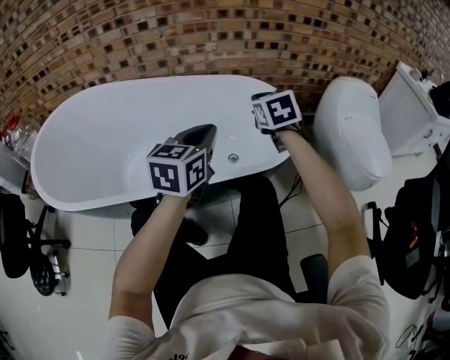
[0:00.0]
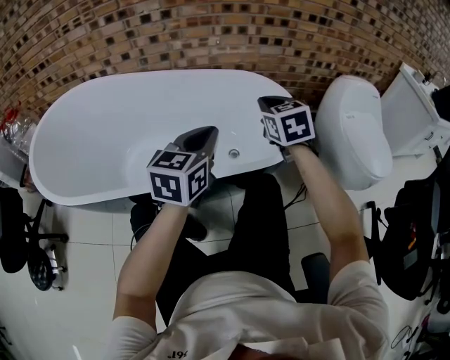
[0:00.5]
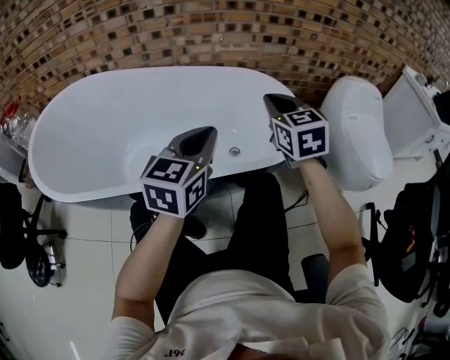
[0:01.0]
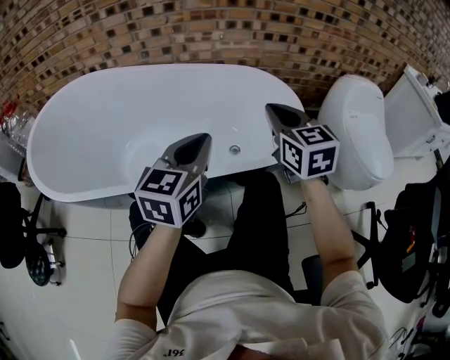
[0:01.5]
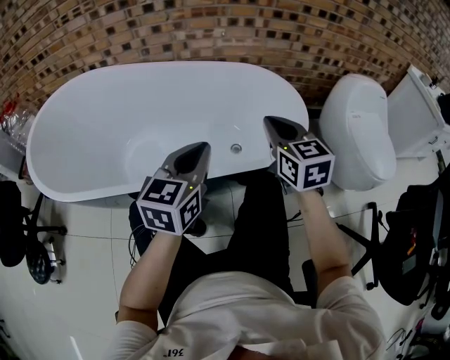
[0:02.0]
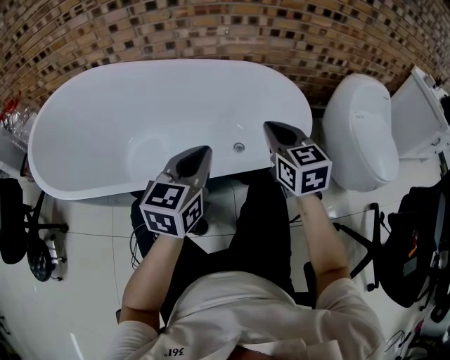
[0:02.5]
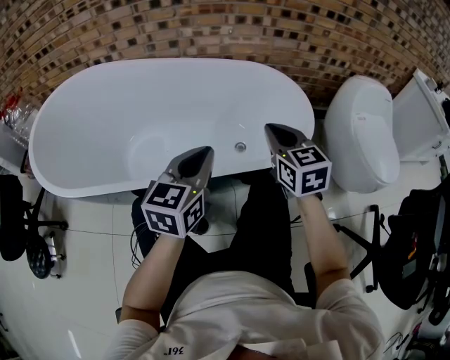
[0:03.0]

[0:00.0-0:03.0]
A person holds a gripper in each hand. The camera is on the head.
0:00.0 to 0:01.5: The right gripper moves backward, about 10 cm, and turns by approximately 20 degrees. Meanwhile the left gripper ends up approximately 5 cm from where it was.
0:01.5 to 0:03.0: The right gripper is displaced downward by some 5 cm.

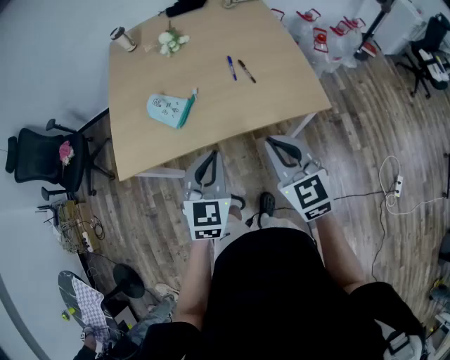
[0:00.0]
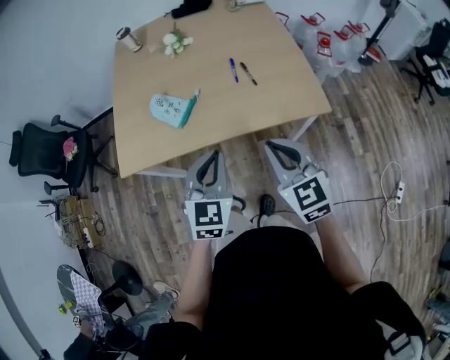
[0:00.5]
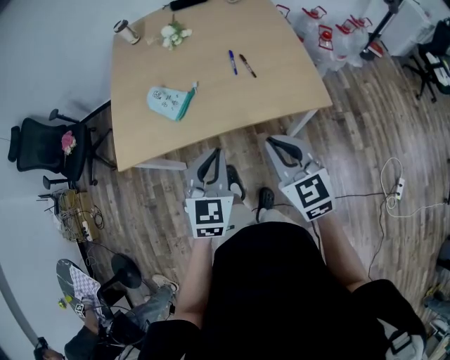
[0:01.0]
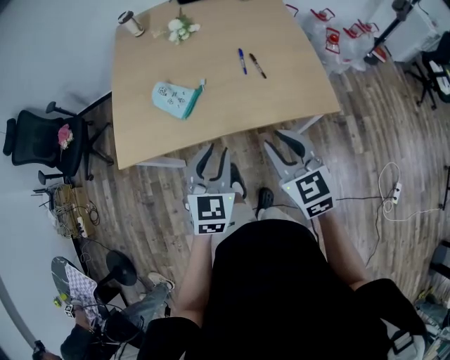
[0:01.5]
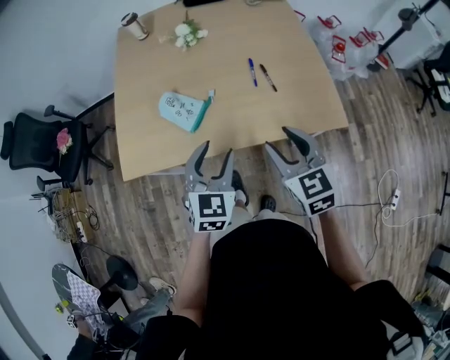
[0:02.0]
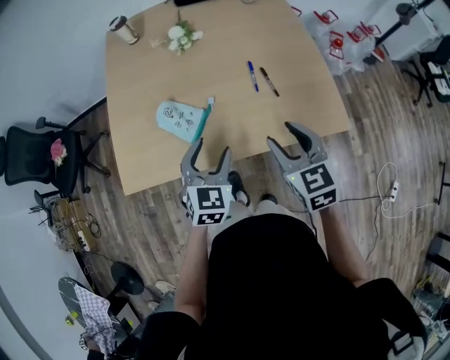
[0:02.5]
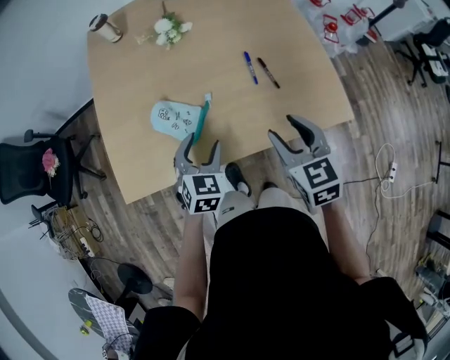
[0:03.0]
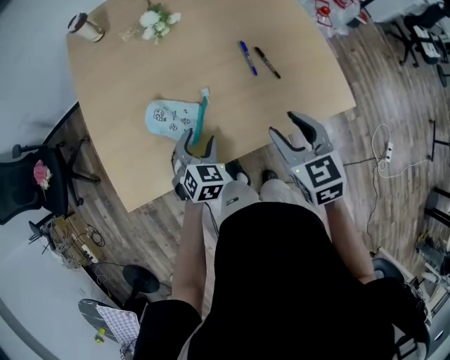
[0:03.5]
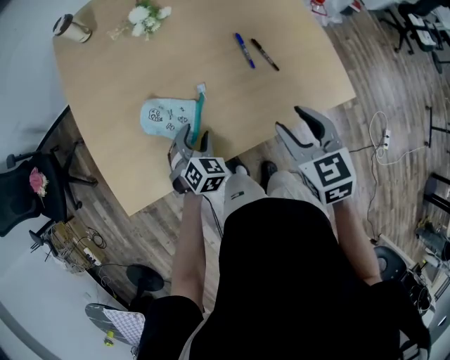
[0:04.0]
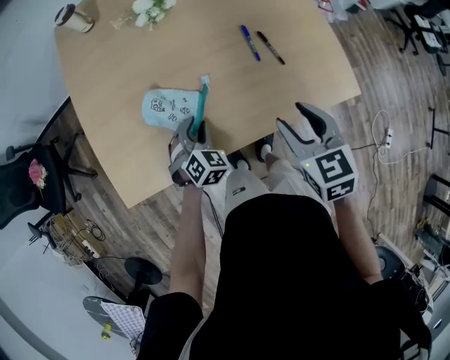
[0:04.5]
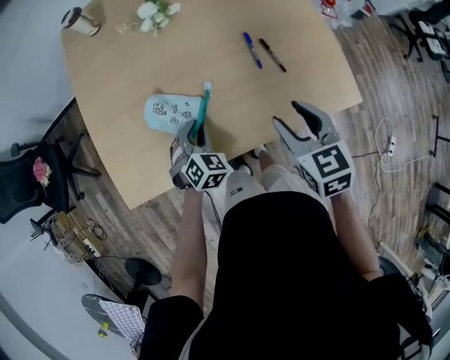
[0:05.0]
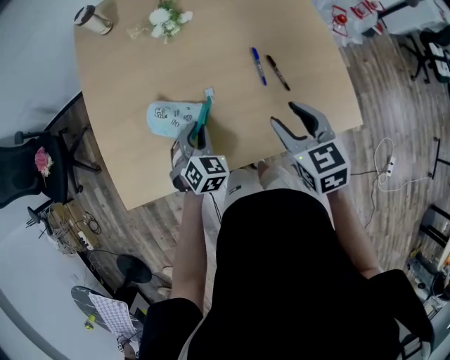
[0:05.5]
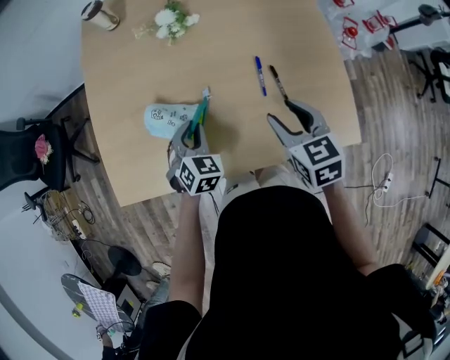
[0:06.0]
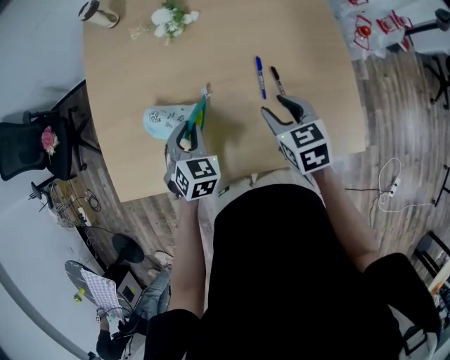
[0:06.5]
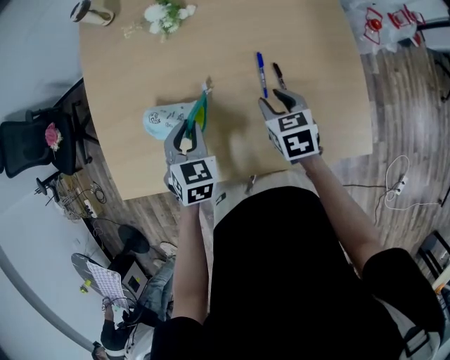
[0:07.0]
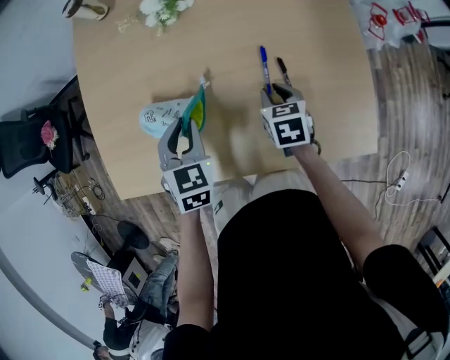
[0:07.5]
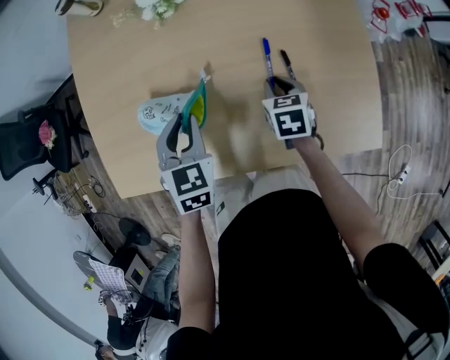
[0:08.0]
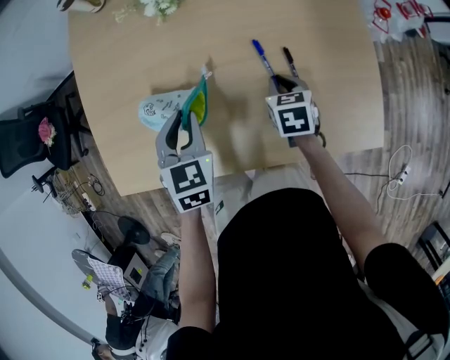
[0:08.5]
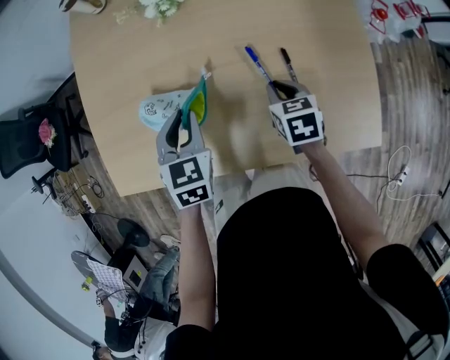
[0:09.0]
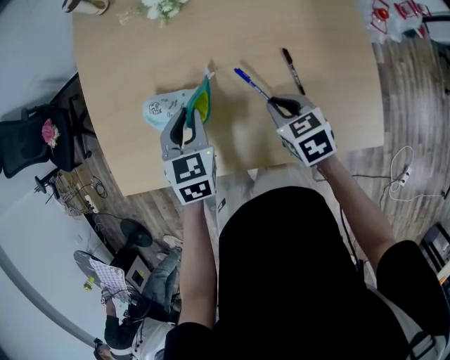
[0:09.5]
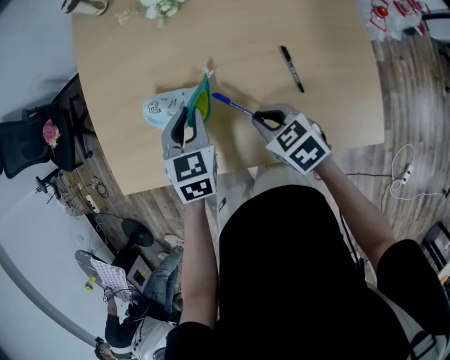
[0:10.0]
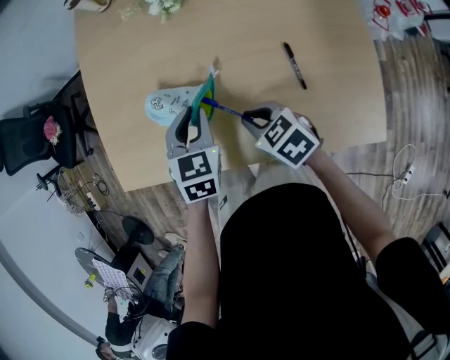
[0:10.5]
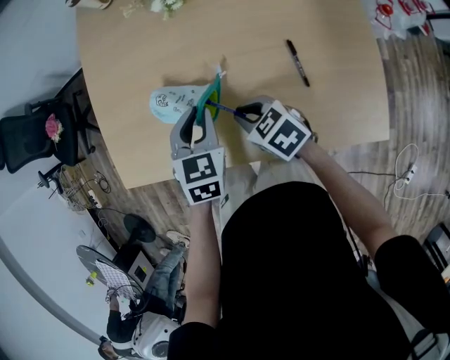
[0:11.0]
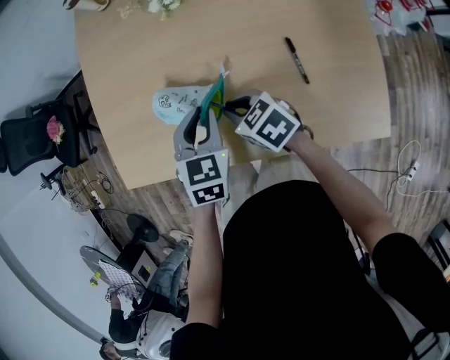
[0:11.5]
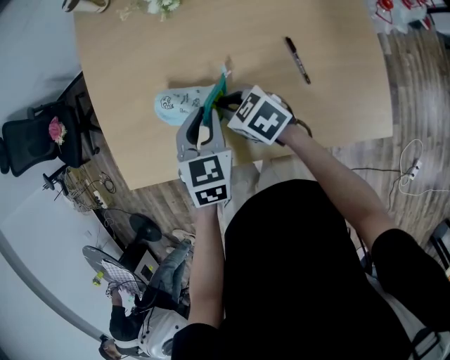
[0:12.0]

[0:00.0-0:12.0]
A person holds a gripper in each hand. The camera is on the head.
0:00.0 to 0:02.0: Both grippers travel together forward, some 10 cm. The right gripper opens. Meanwhile the left gripper opens.
0:02.0 to 0:04.0: The left gripper heads downward, forward and to the left, covering approximately 25 cm, and rotates about 30 degrees; the right gripper goes approximately 10 cm forward, and rotates roughly 20 degrees.
0:04.0 to 0:06.0: The right gripper shifts about 10 cm forward; the left gripper travels forward and upward by some 10 cm, and closes.
0:06.0 to 0:08.0: The right gripper moves downward and forward, some 20 cm, swivels about 20 degrees, and closes. Meanwhile the left gripper moves approximately 5 cm.
0:08.0 to 0:10.0: The right gripper shifts roughly 15 cm to the left, backward and upward, and turns by some 30 degrees.
0:10.0 to 0:12.0: The right gripper is displaced forward and to the left by roughly 10 cm.

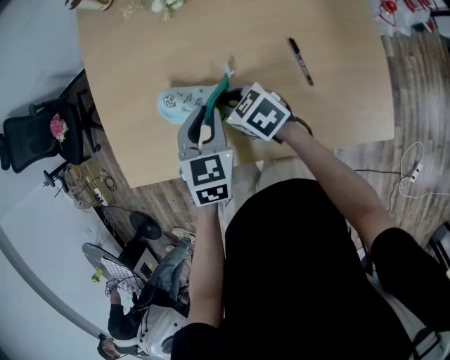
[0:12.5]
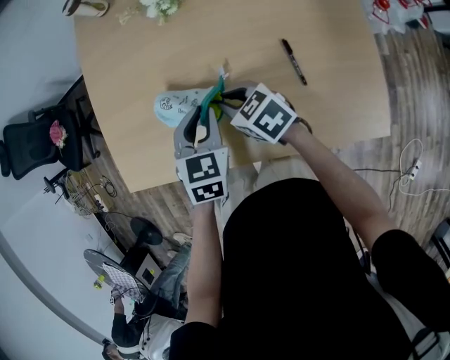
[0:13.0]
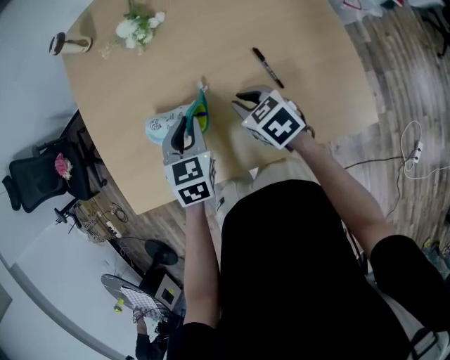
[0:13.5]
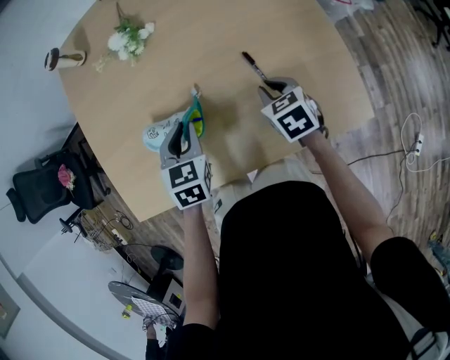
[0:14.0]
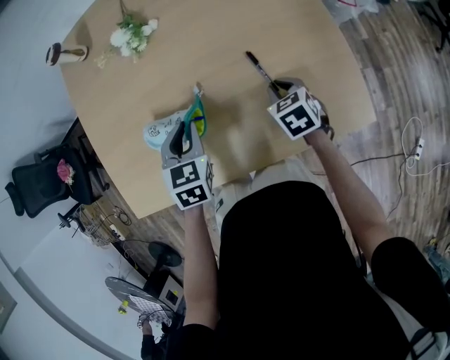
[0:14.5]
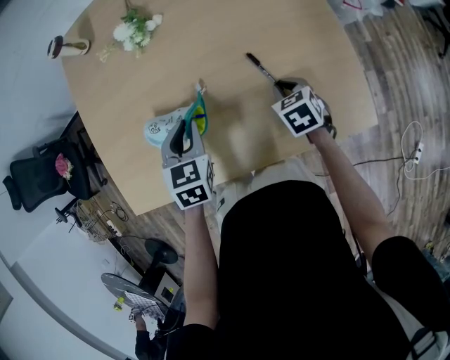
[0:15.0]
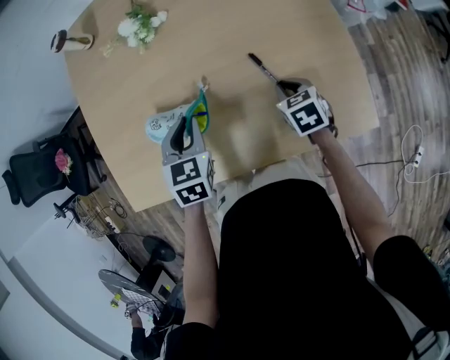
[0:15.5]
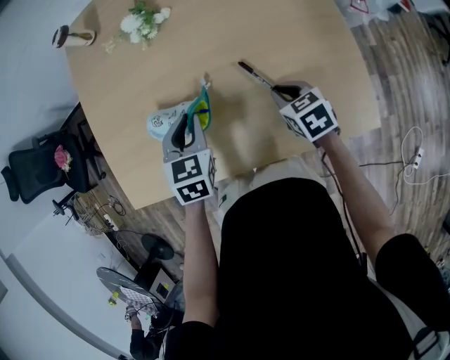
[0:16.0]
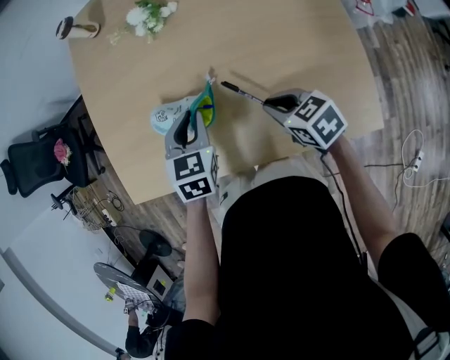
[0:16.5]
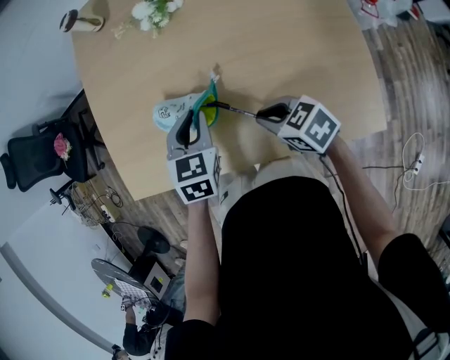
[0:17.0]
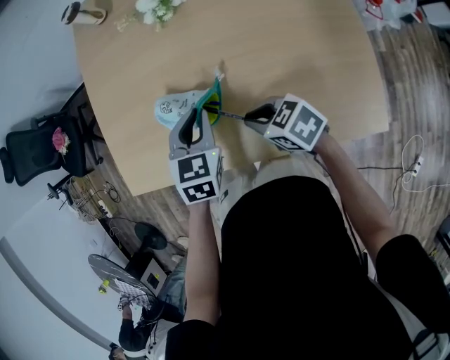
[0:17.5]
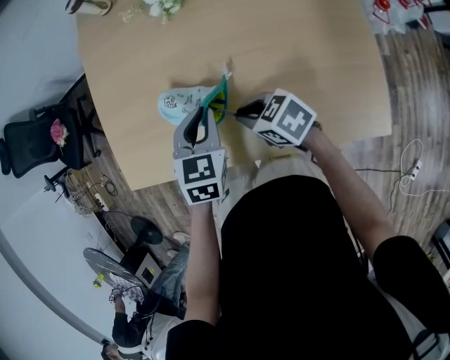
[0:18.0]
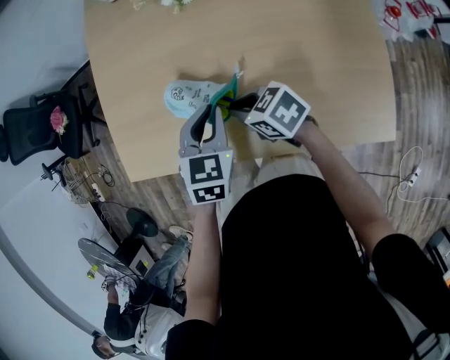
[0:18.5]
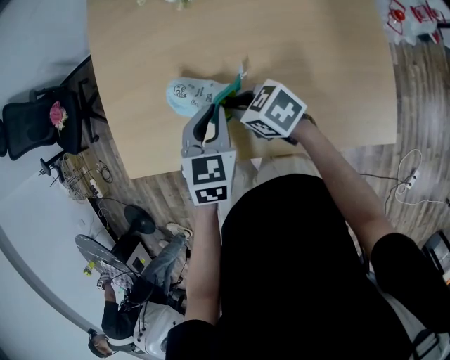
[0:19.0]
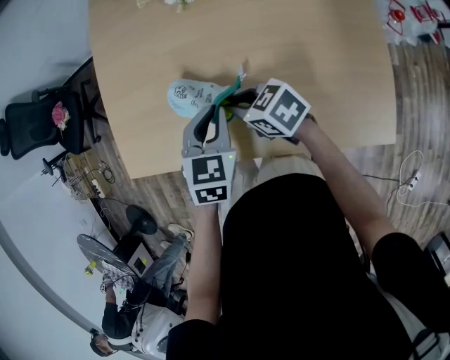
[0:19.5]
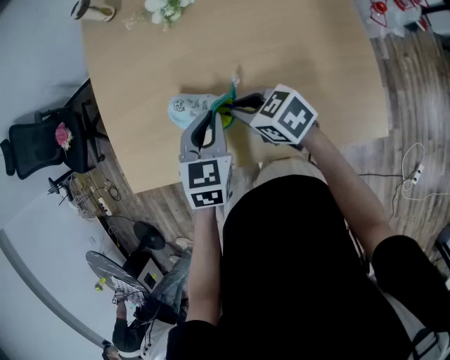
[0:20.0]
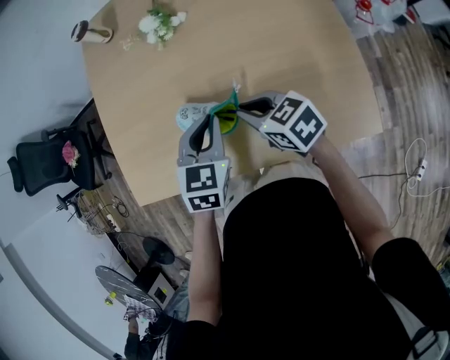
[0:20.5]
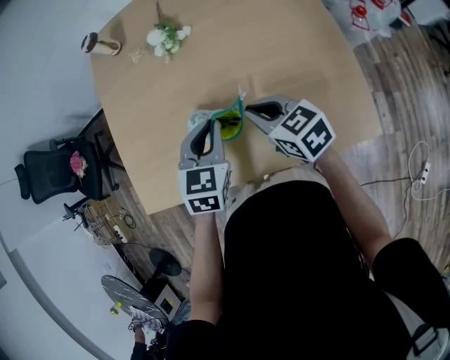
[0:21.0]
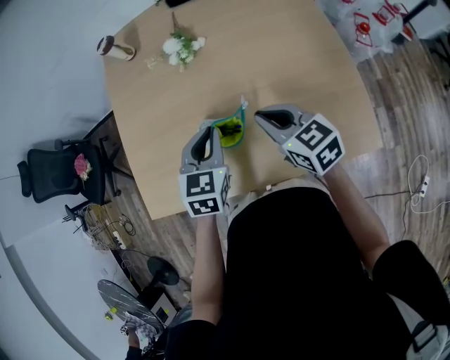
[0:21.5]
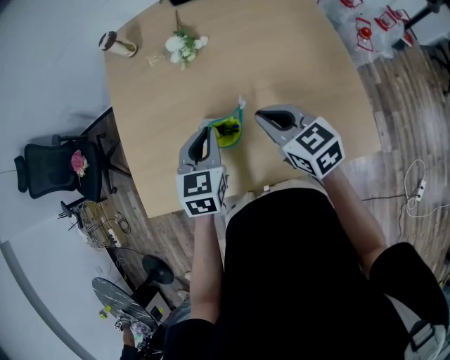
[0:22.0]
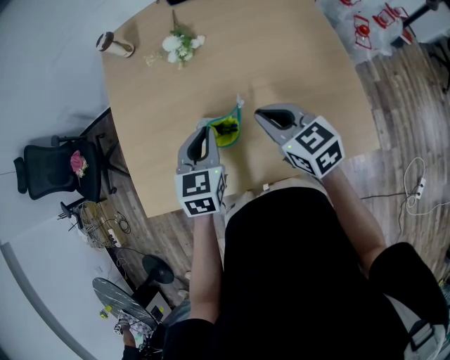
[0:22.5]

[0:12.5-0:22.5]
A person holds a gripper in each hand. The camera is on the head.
0:12.5 to 0:14.5: The right gripper changes place by approximately 25 cm, and turns by about 40 degrees.
0:14.5 to 0:16.5: The right gripper heads to the left and upward, covering roughly 10 cm, and turns by some 30 degrees.
0:16.5 to 0:18.5: The right gripper shifts some 15 cm to the left and forward.
0:18.5 to 0:20.5: The left gripper is displaced to the right by approximately 5 cm. The right gripper is displaced to the right and upward by some 10 cm.
0:20.5 to 0:22.5: The left gripper ends up about 5 cm from where it was, while the right gripper heads upward, covering some 10 cm.

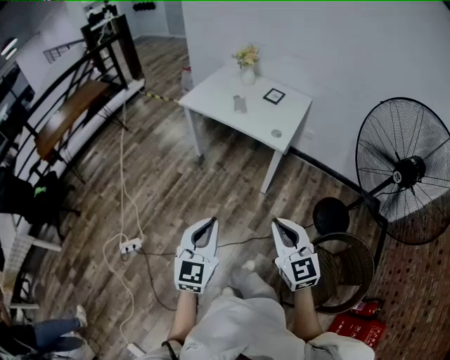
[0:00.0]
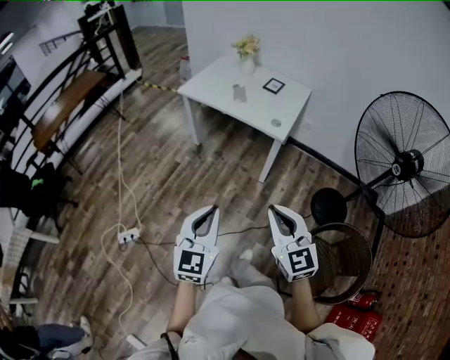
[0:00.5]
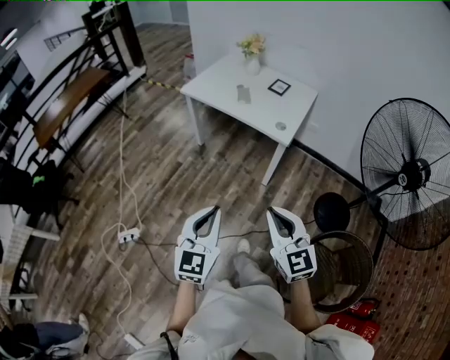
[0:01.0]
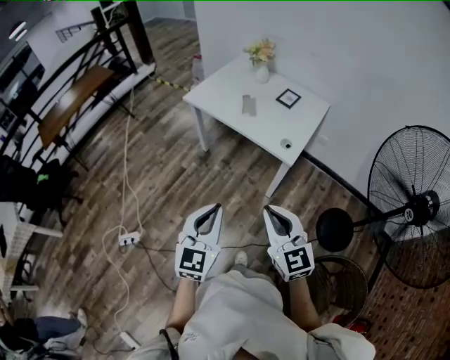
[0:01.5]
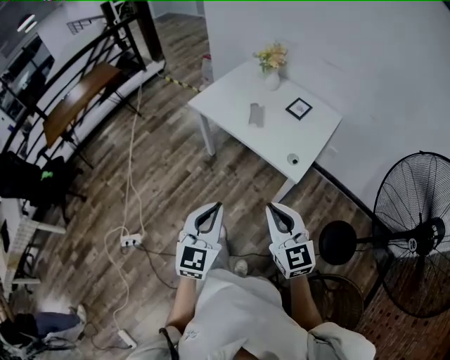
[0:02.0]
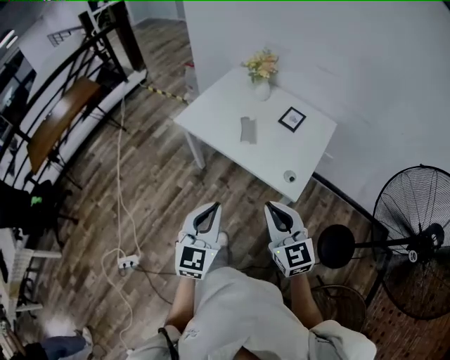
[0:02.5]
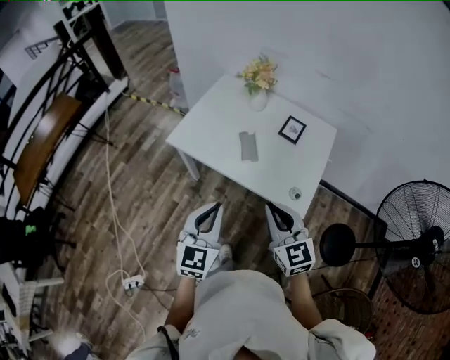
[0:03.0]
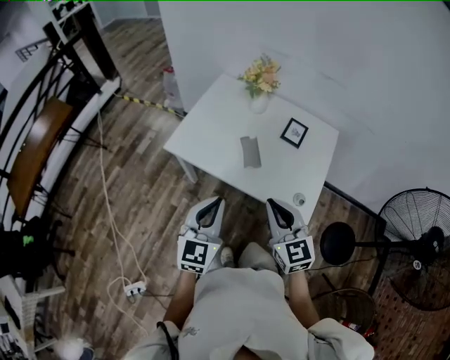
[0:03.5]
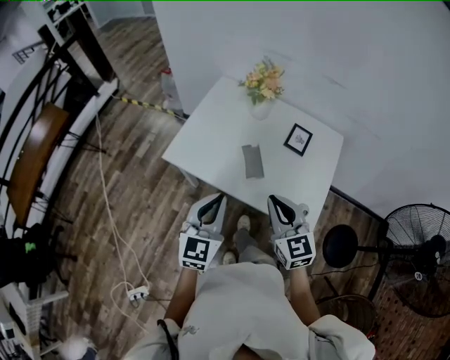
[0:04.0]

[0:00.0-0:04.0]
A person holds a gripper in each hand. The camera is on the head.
0:00.0 to 0:02.0: The grippers both shift forward by some 25 cm.
0:02.0 to 0:04.0: Both grippers travel together forward, about 35 cm.
